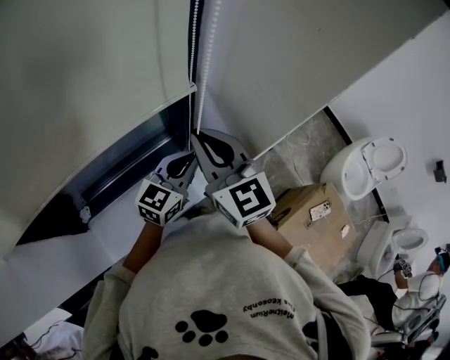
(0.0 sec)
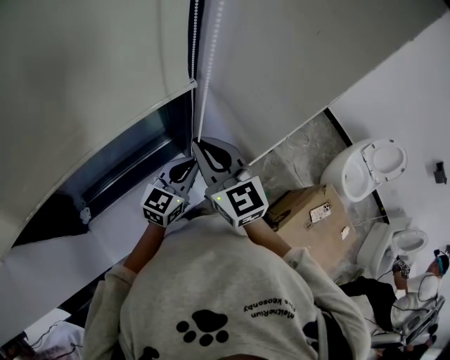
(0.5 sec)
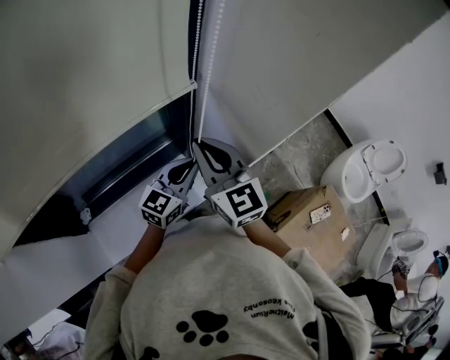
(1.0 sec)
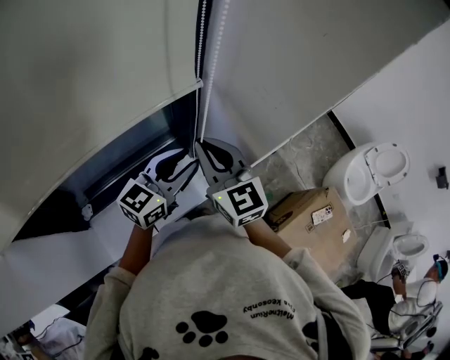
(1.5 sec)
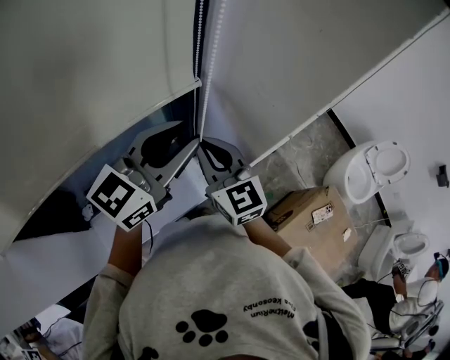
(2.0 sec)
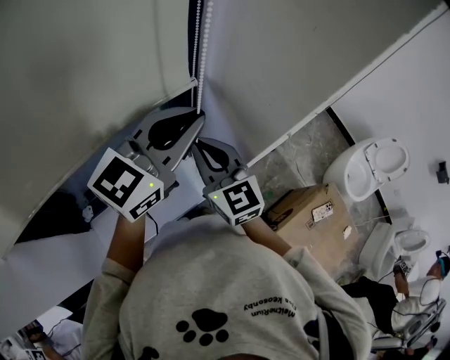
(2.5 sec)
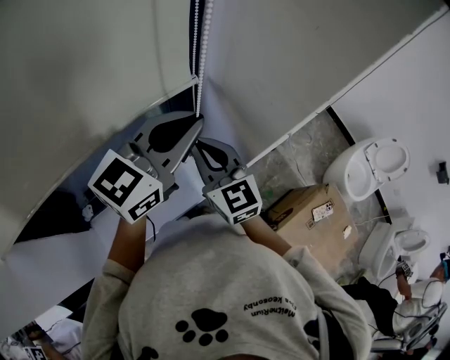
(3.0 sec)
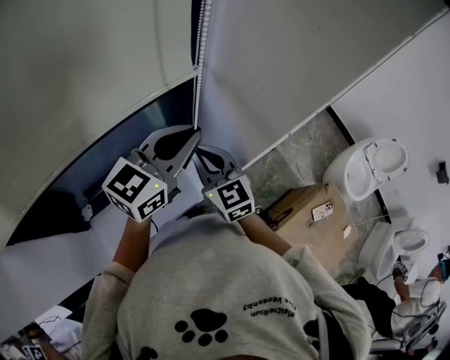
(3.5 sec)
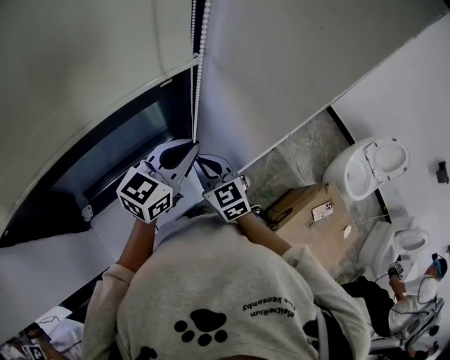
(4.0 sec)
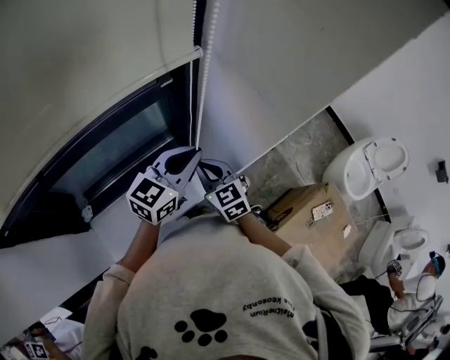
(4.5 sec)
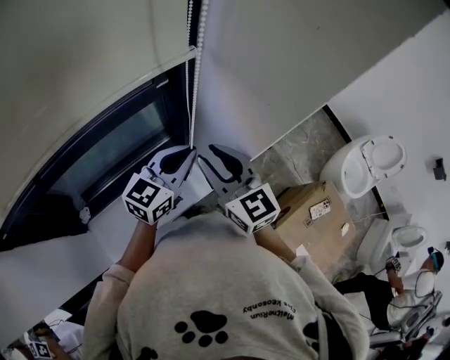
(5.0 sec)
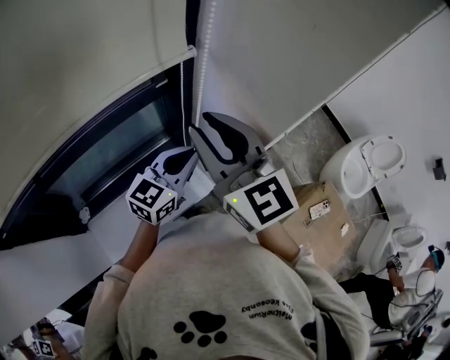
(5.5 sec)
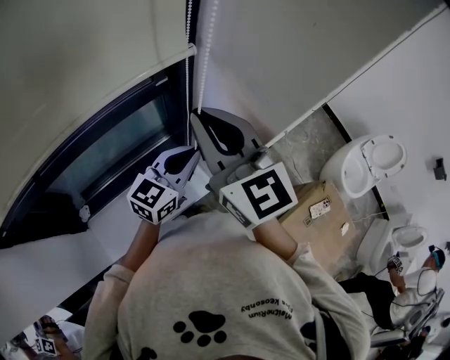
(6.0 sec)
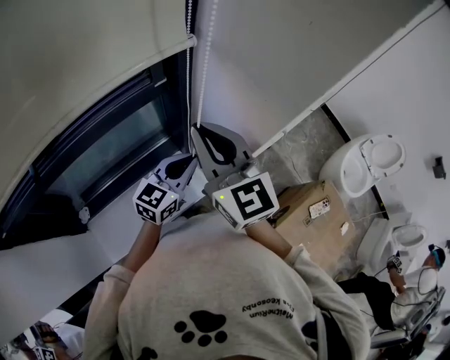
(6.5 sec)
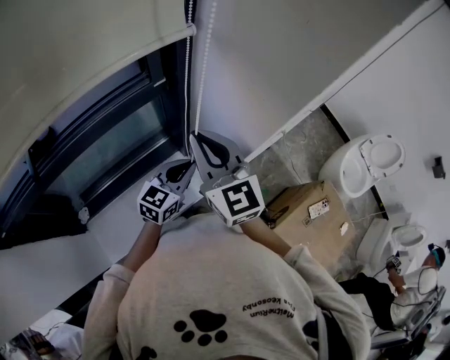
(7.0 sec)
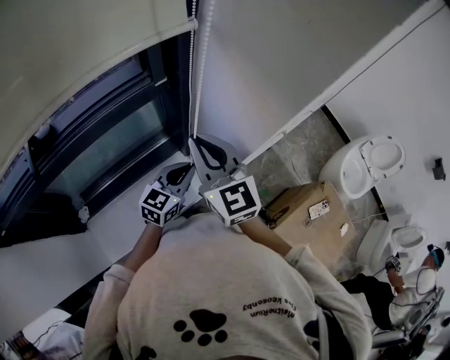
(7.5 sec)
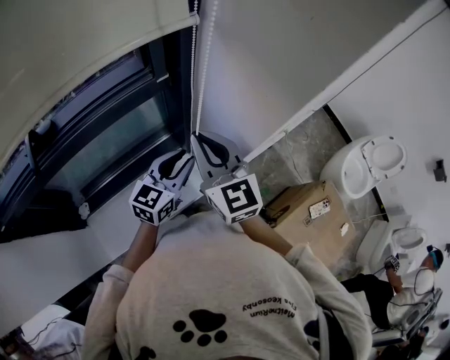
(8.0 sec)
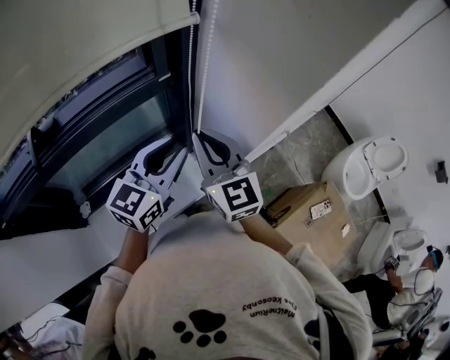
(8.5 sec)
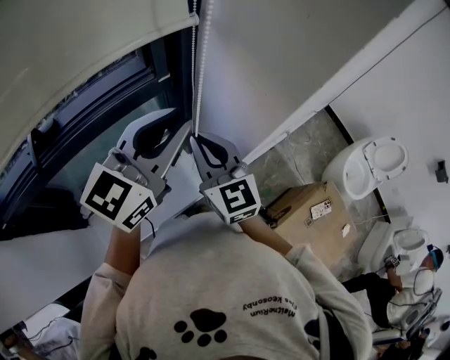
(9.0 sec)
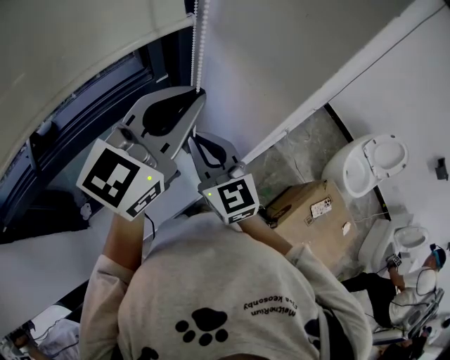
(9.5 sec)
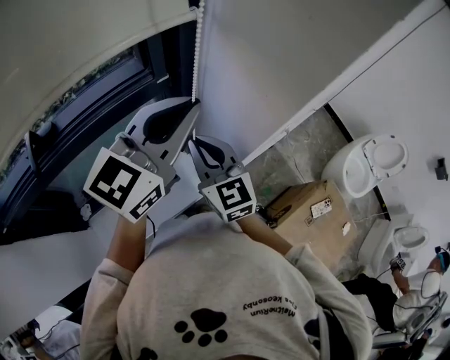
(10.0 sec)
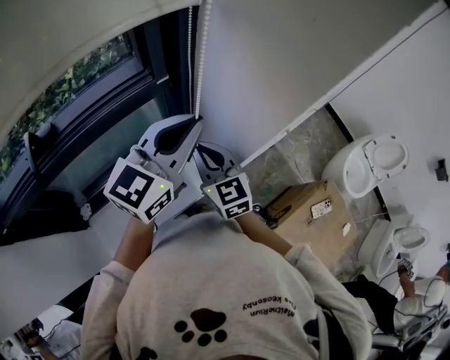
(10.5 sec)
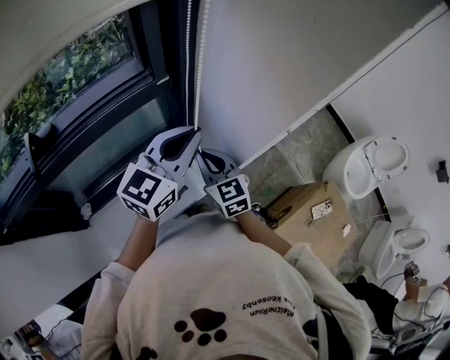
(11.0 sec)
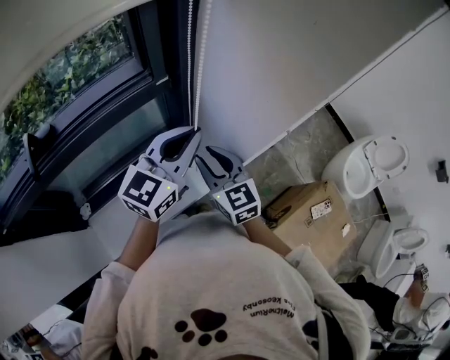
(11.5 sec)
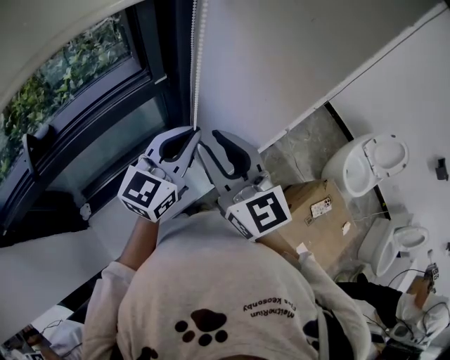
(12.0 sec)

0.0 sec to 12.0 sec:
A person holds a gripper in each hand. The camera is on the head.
0.0 sec to 2.0 sec: The left gripper is displaced upward by about 15 cm, and opens its fingers.
2.0 sec to 4.0 sec: Both grippers travel together downward, some 10 cm. The left gripper closes.
4.0 sec to 6.0 sec: The right gripper travels upward by approximately 25 cm, swivels some 20 degrees, and opens, then closes once more.
6.0 sec to 8.0 sec: The right gripper moves downward, some 10 cm. The left gripper is displaced downward by approximately 5 cm, and opens its fingers.
8.0 sec to 10.0 sec: The left gripper travels upward by roughly 25 cm, and closes up.
10.0 sec to 12.0 sec: The right gripper goes roughly 10 cm upward, and opens up. The left gripper is displaced downward by approximately 10 cm.

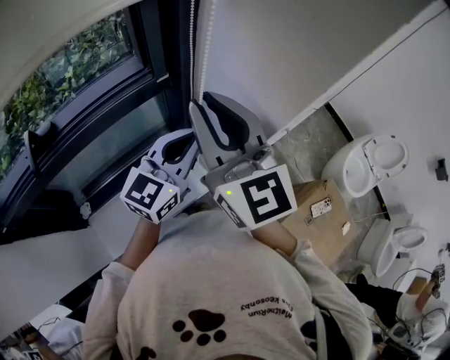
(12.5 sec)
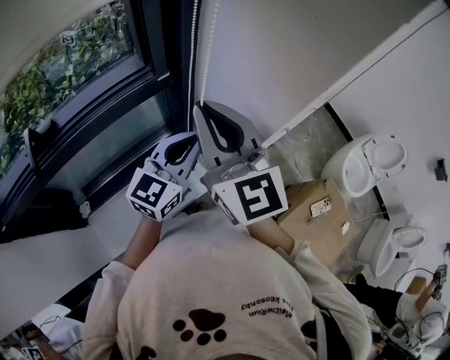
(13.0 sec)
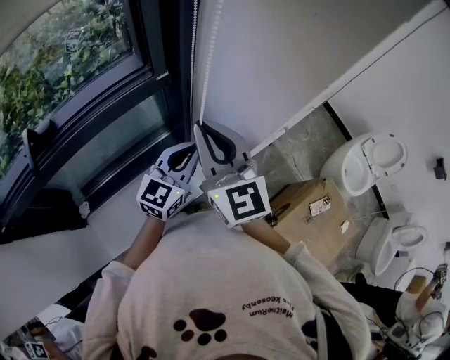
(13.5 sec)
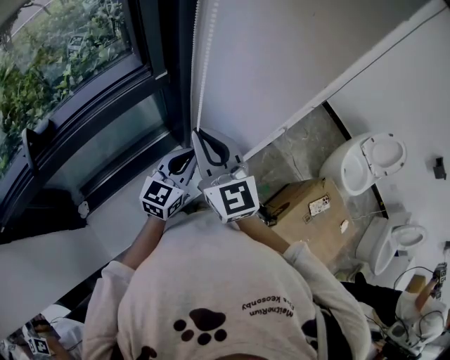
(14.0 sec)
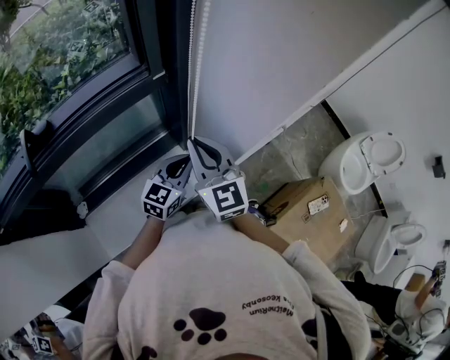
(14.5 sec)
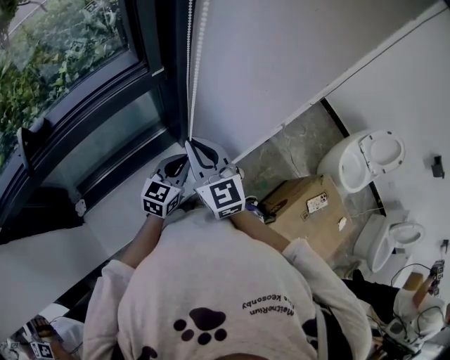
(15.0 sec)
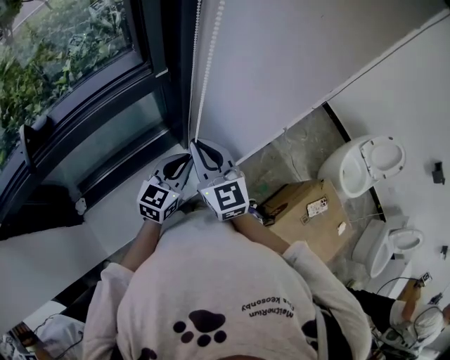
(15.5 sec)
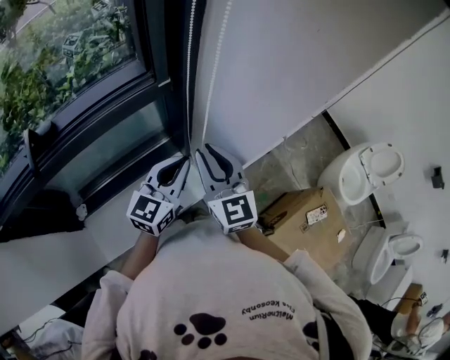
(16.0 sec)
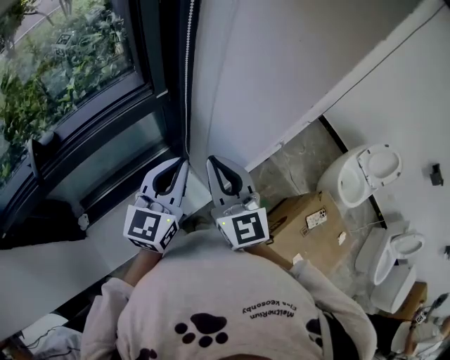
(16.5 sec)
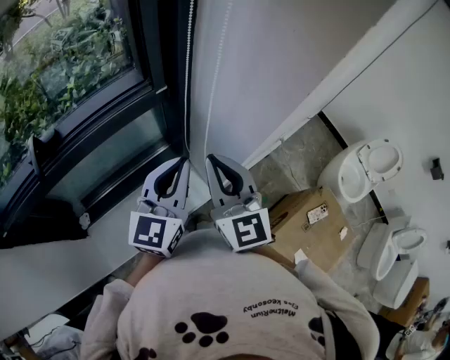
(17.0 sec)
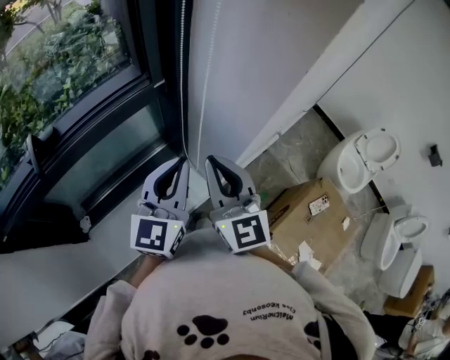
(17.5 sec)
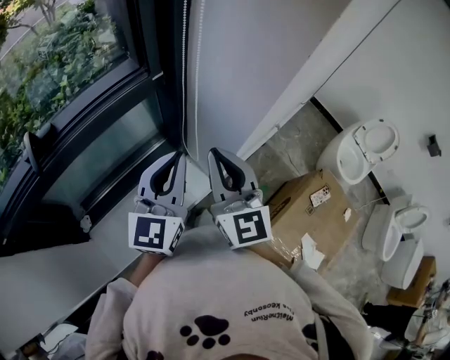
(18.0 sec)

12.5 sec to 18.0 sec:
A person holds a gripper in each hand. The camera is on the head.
12.5 sec to 14.5 sec: Both grippers travel together downward, roughly 20 cm.
14.5 sec to 16.0 sec: The left gripper is displaced upward by some 10 cm.
16.0 sec to 18.0 sec: The right gripper travels backward and upward by some 10 cm, while the left gripper is displaced upward by approximately 10 cm.

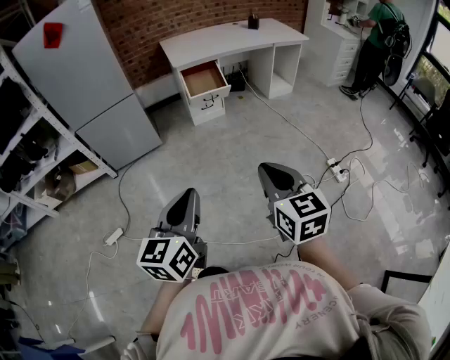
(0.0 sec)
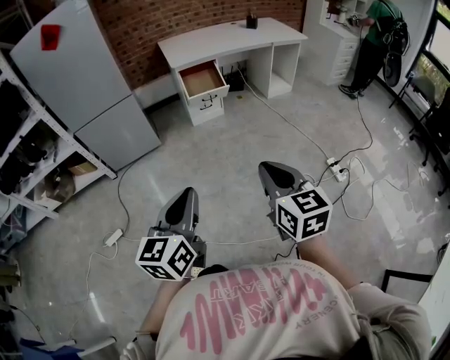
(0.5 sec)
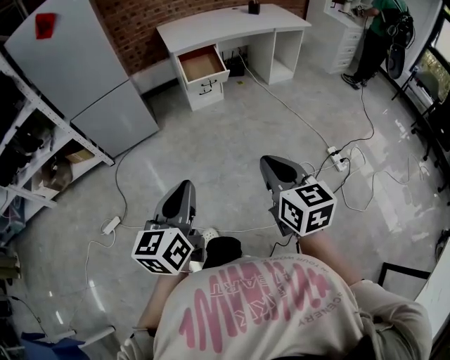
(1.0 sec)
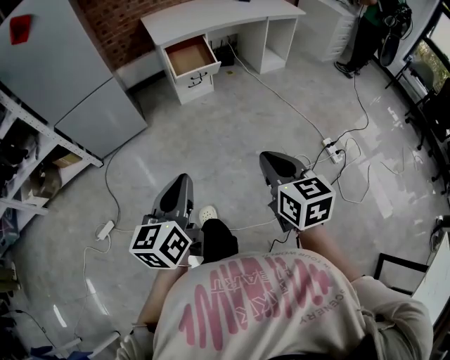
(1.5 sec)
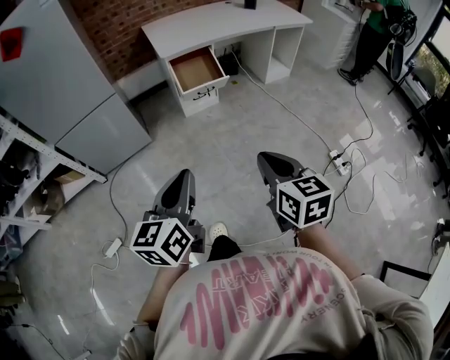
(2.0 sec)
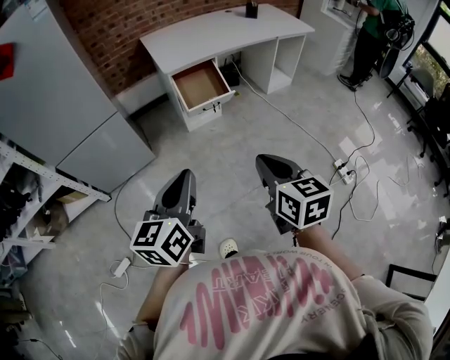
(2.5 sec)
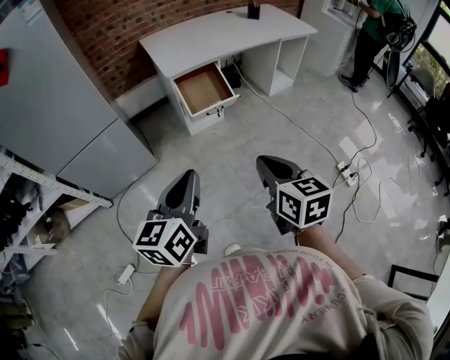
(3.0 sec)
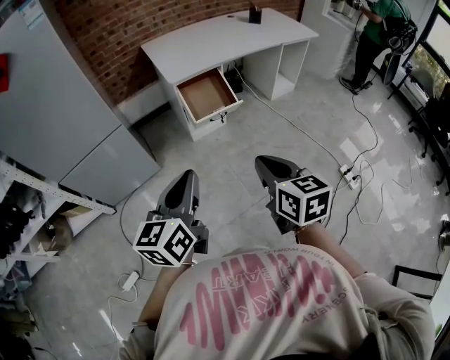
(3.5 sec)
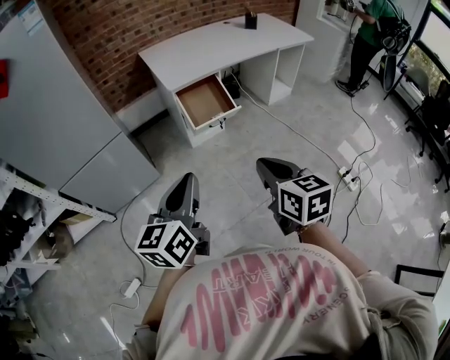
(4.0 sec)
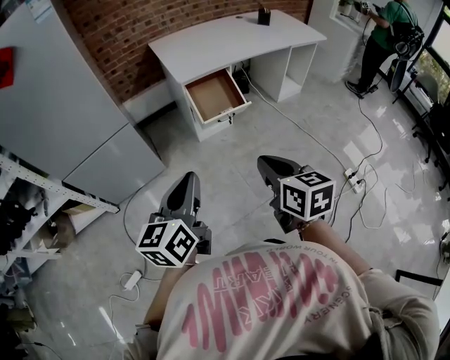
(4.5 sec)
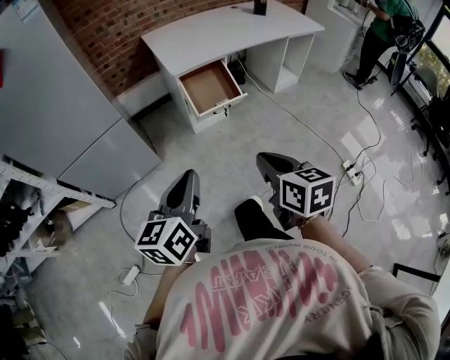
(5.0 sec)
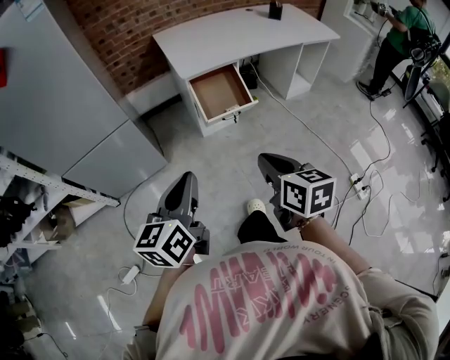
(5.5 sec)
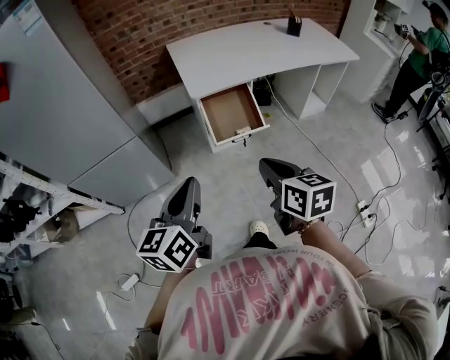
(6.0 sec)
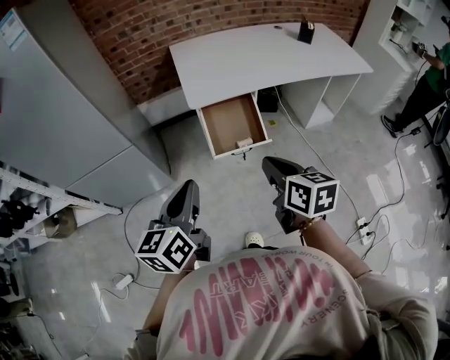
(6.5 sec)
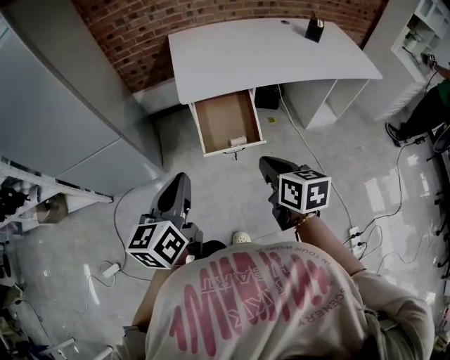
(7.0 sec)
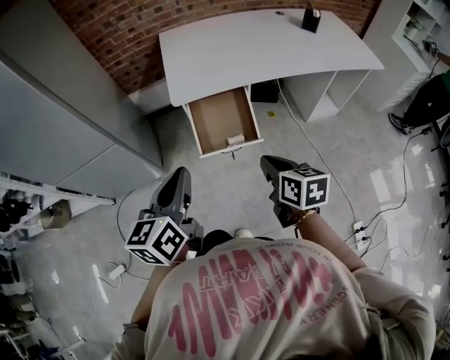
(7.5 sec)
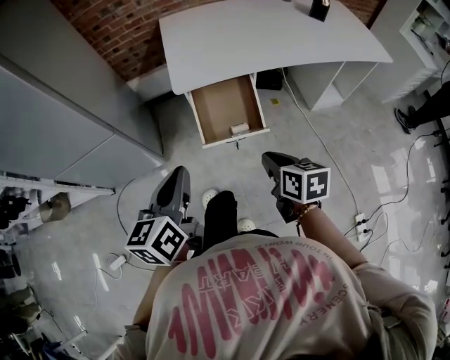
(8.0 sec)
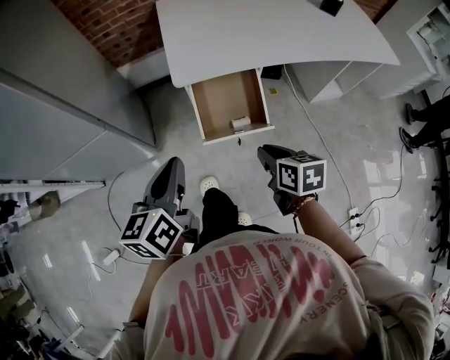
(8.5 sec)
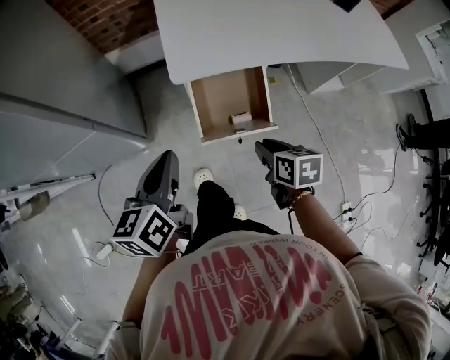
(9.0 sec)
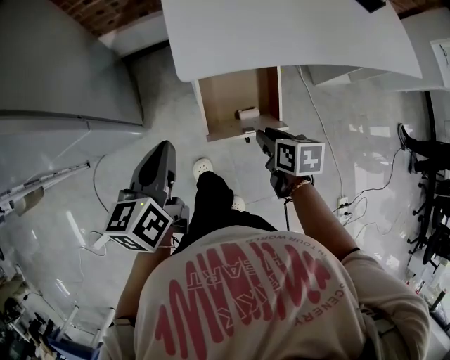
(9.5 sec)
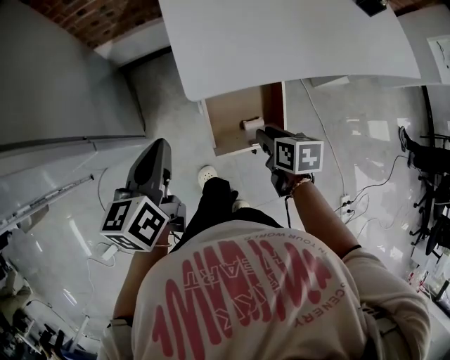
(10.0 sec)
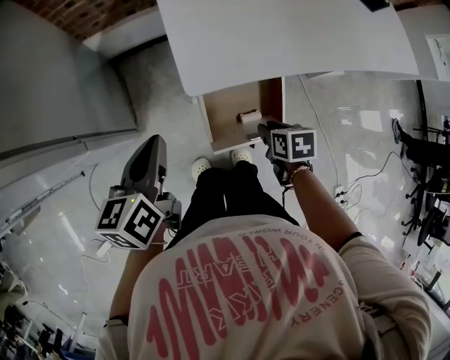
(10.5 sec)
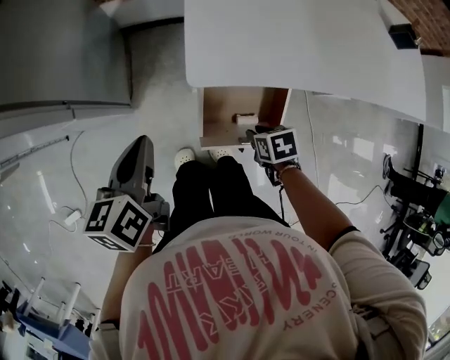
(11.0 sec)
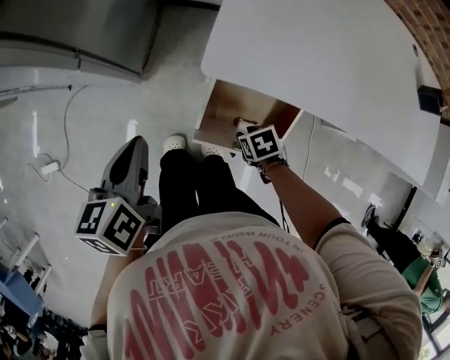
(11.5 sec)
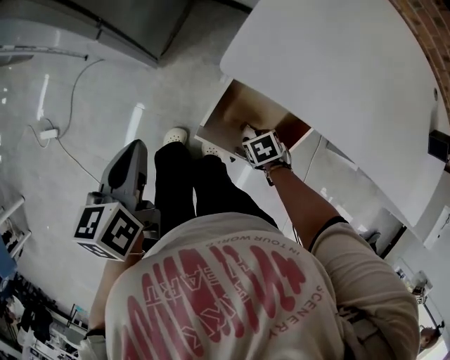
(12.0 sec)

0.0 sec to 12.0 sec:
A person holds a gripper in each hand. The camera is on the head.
0.0 sec to 2.0 sec: The two grippers go some 20 cm forward.
2.0 sec to 4.0 sec: Both grippers travel together forward and to the left, approximately 20 cm.
4.0 sec to 6.0 sec: Both grippers travel together forward, roughly 15 cm.
6.0 sec to 8.0 sec: The right gripper travels forward, downward and to the right by roughly 25 cm. The left gripper goes roughly 20 cm forward and to the right.
8.0 sec to 10.0 sec: The right gripper heads forward and downward, covering about 30 cm, turns by about 20 degrees, and opens its fingers, while the left gripper shifts about 30 cm forward.
10.0 sec to 12.0 sec: The right gripper heads downward, covering some 20 cm, and twists roughly 60 degrees counterclockwise, seen from behind. Meanwhile the left gripper changes place by some 10 cm, and swivels roughly 40 degrees.
